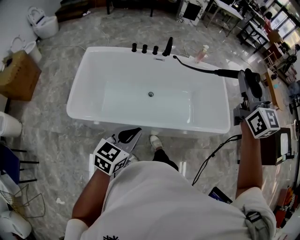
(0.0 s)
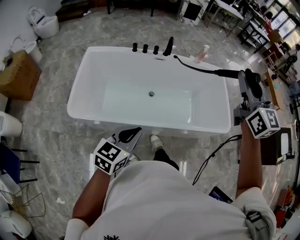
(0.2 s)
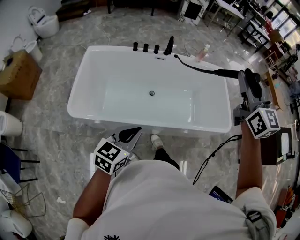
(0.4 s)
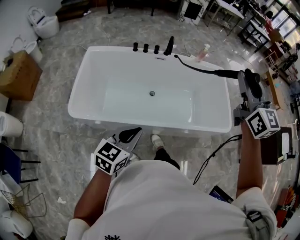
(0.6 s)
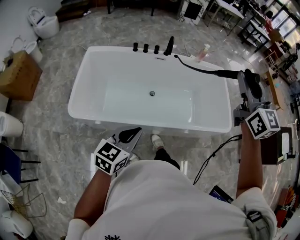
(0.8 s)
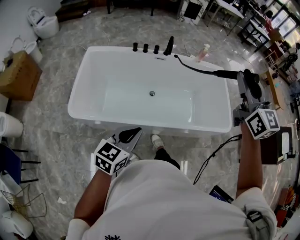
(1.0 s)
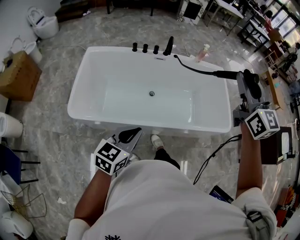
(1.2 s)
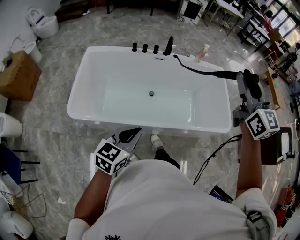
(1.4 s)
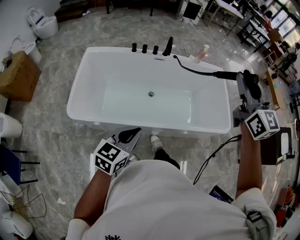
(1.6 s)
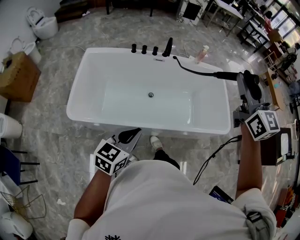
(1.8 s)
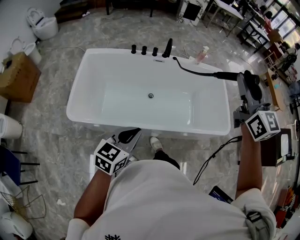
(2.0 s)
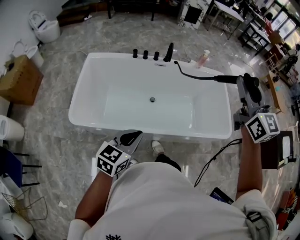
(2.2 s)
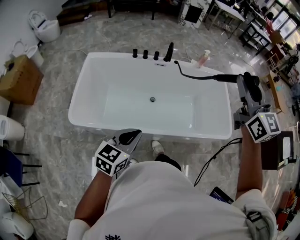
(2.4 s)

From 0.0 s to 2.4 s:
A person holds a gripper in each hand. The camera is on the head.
From 0.0 s to 1.2 s: The two grippers keep their place.
From 1.2 s to 2.4 s: There are only small adjustments of the grippers.

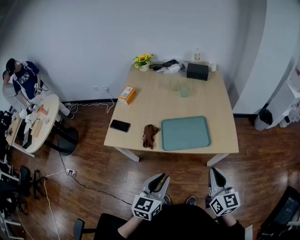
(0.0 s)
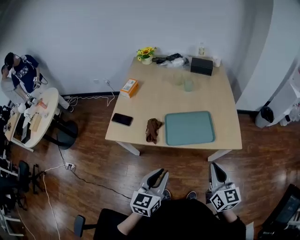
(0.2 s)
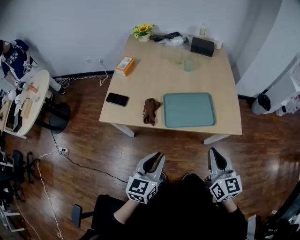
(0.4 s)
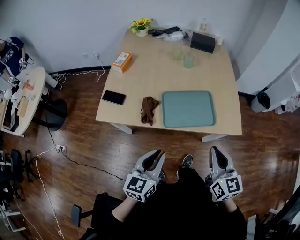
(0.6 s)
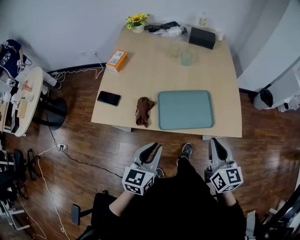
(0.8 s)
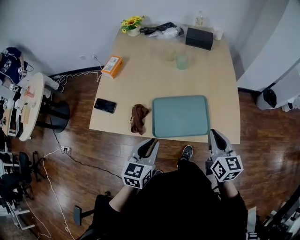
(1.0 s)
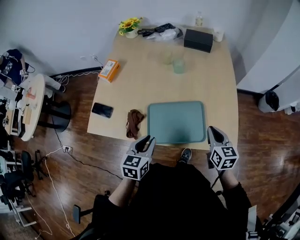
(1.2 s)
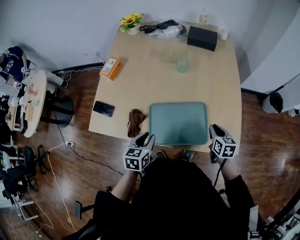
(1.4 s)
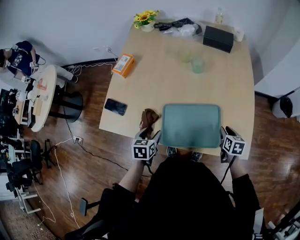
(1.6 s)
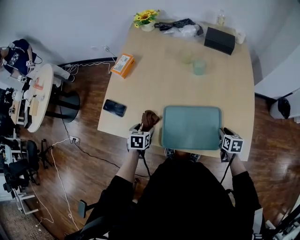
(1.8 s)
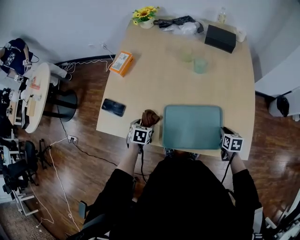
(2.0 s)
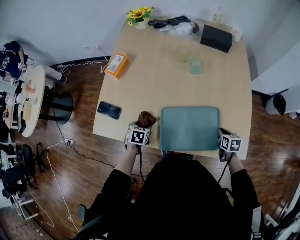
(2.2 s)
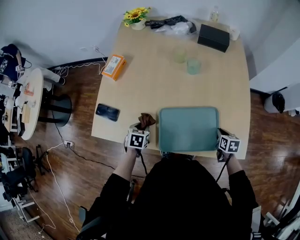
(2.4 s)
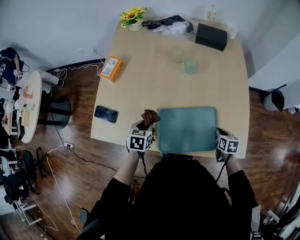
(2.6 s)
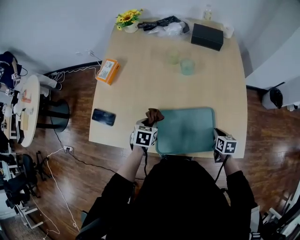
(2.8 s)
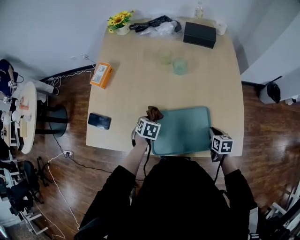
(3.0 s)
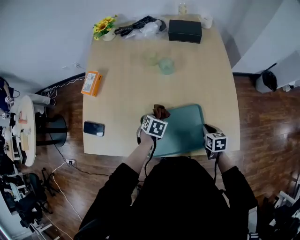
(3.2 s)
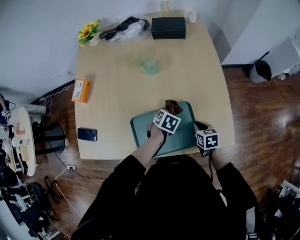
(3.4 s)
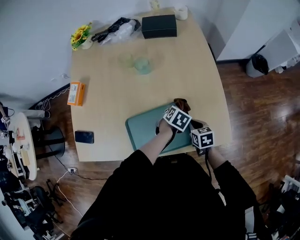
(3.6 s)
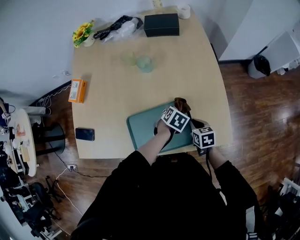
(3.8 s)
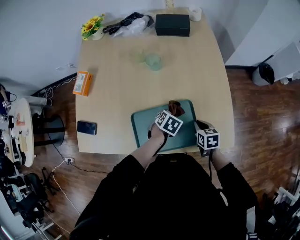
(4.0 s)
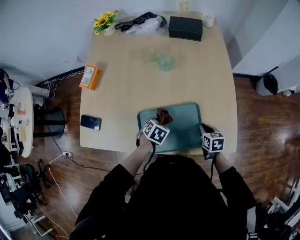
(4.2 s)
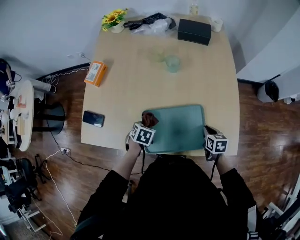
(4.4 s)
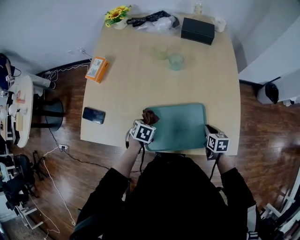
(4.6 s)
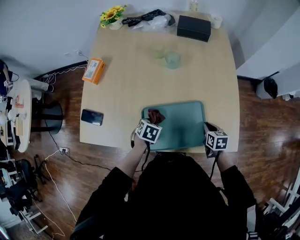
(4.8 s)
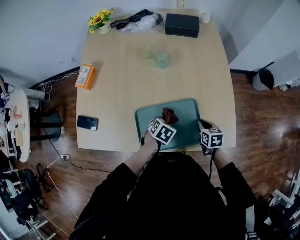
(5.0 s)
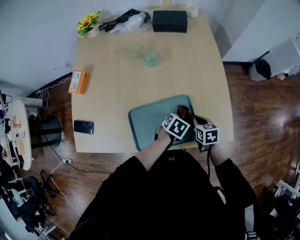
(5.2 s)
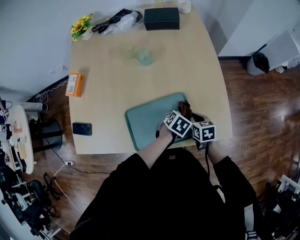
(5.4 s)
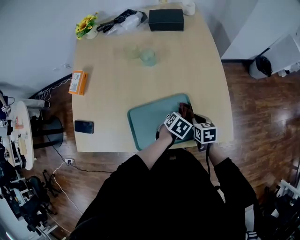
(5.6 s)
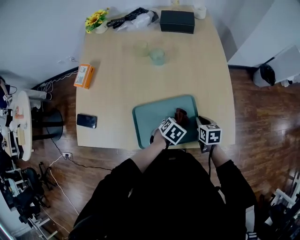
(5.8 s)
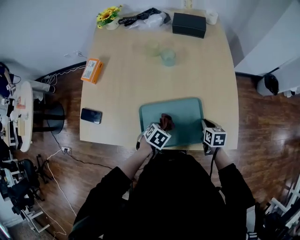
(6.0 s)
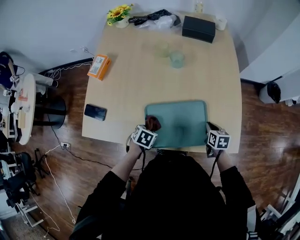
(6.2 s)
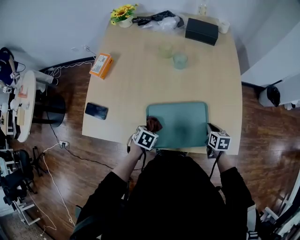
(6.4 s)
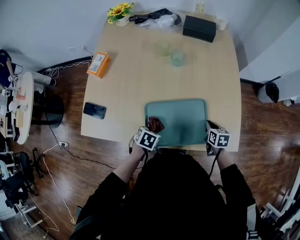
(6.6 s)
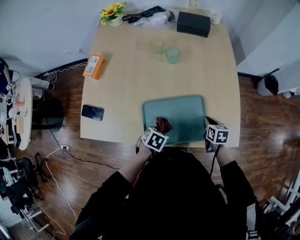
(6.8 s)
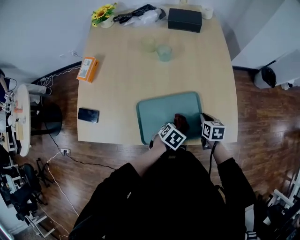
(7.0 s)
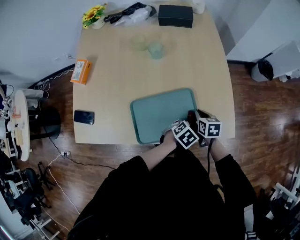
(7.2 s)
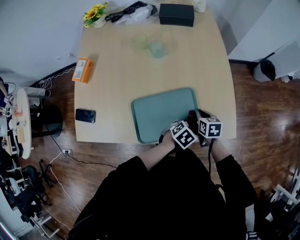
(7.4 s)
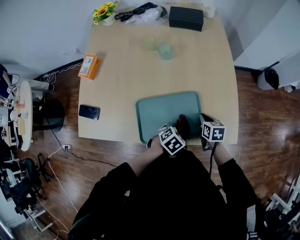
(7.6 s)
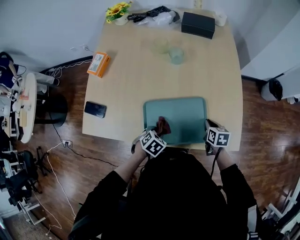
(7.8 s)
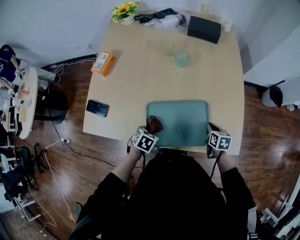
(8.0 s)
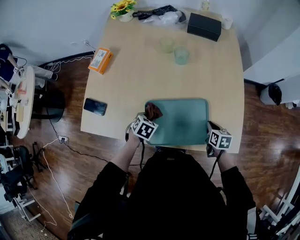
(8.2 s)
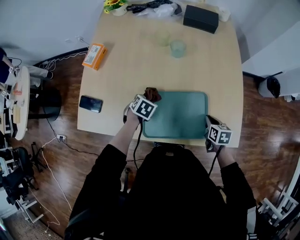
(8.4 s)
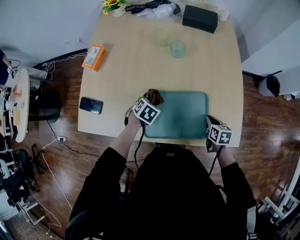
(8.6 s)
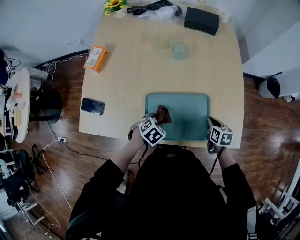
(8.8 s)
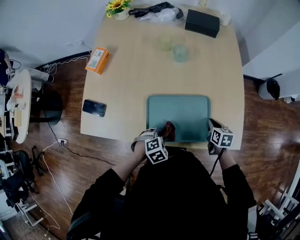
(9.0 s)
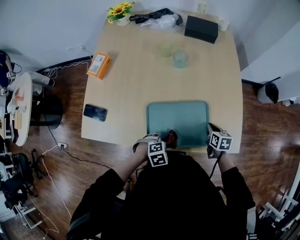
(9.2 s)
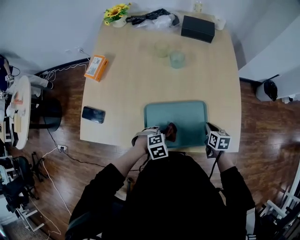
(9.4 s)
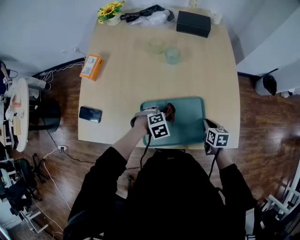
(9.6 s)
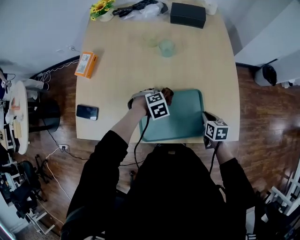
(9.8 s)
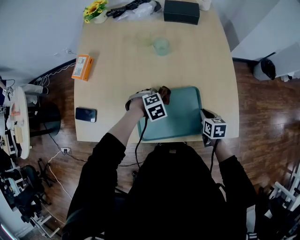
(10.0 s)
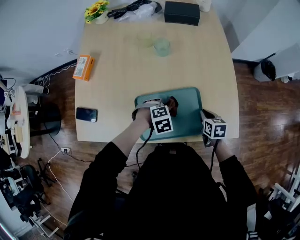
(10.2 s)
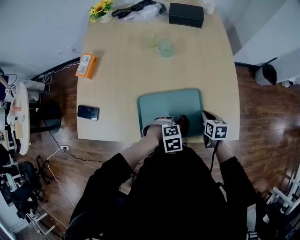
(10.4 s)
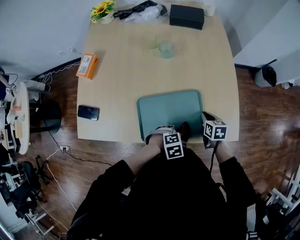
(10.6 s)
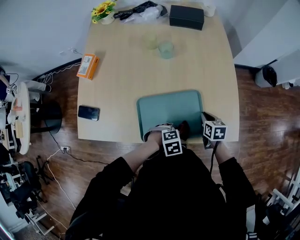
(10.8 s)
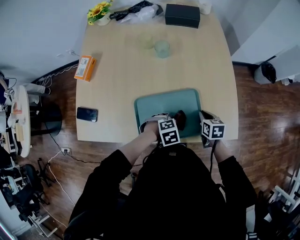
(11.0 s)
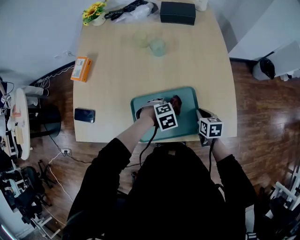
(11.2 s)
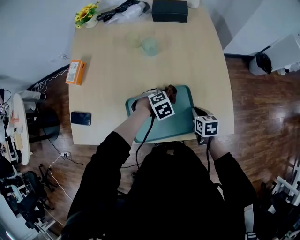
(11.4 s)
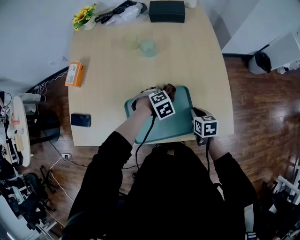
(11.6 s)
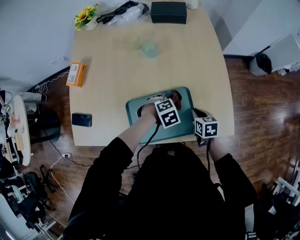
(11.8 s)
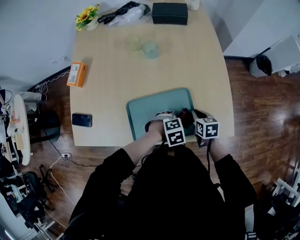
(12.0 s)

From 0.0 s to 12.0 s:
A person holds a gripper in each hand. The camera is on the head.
From 0.0 s to 1.6 s: The grippers both shift forward and downward by about 35 cm. The left gripper tips its fingers downward by roughly 30 degrees, and opens its fingers. The right gripper tilts its fingers roughly 40 degrees downward, and opens.
From 1.6 s to 3.0 s: The right gripper closes up. The left gripper shifts some 15 cm forward and downward, changes its angle by roughly 30 degrees, and closes its fingers.
From 3.0 s to 4.4 s: The left gripper moves approximately 30 cm to the right and comes back.
From 4.4 s to 6.0 s: The left gripper moves to the right, approximately 10 cm.
From 6.0 s to 7.6 s: The left gripper moves left and right over some 25 cm, changing direction 2 times.
From 7.6 s to 9.0 s: The left gripper is displaced to the left by roughly 10 cm.
From 9.0 s to 10.4 s: The left gripper rotates roughly 20 degrees.

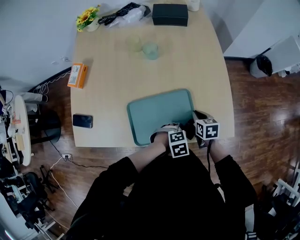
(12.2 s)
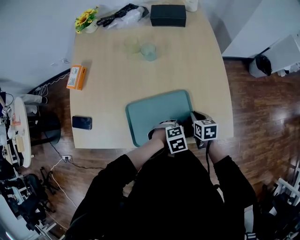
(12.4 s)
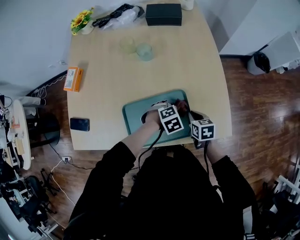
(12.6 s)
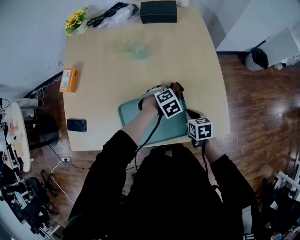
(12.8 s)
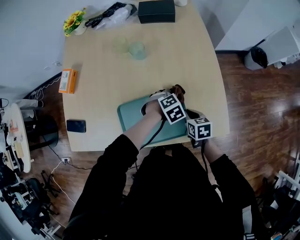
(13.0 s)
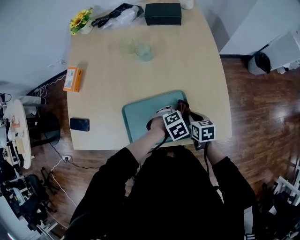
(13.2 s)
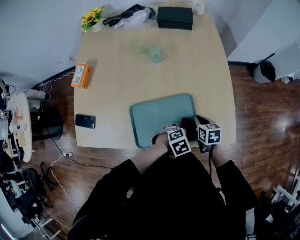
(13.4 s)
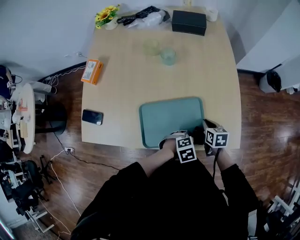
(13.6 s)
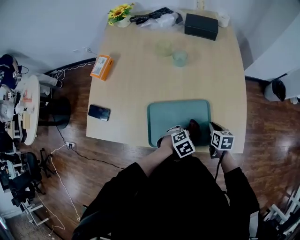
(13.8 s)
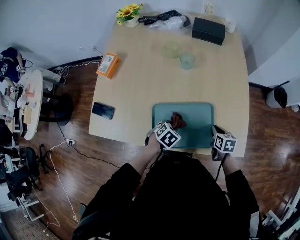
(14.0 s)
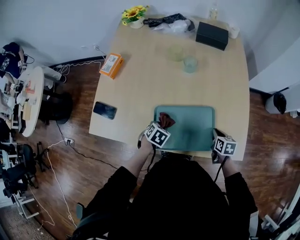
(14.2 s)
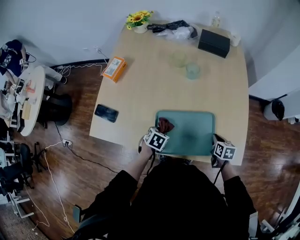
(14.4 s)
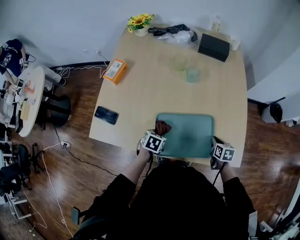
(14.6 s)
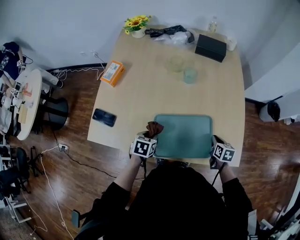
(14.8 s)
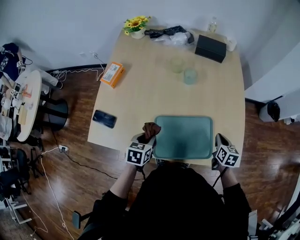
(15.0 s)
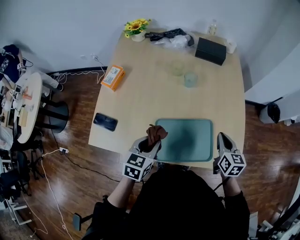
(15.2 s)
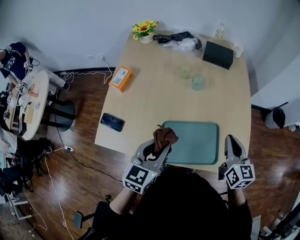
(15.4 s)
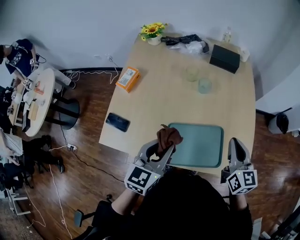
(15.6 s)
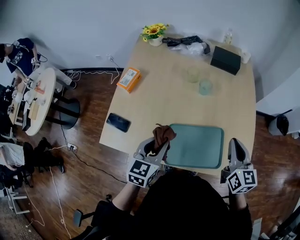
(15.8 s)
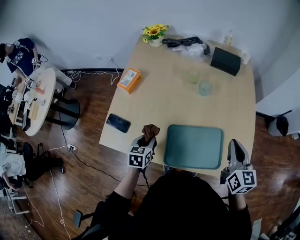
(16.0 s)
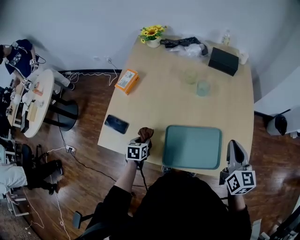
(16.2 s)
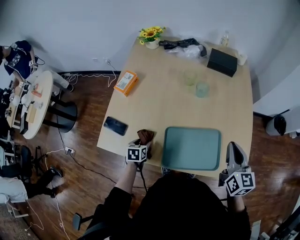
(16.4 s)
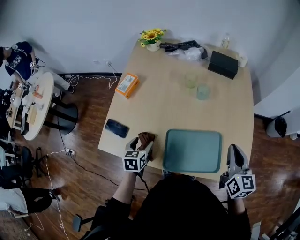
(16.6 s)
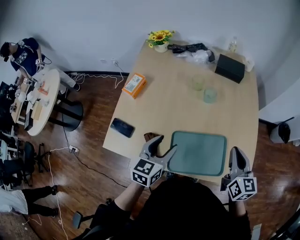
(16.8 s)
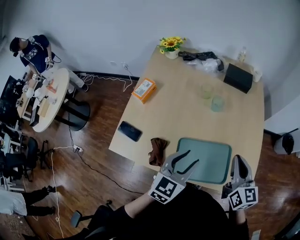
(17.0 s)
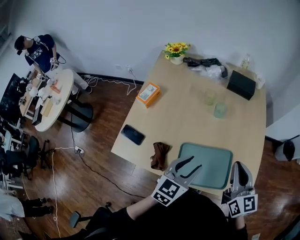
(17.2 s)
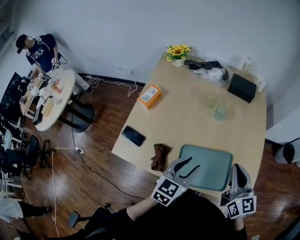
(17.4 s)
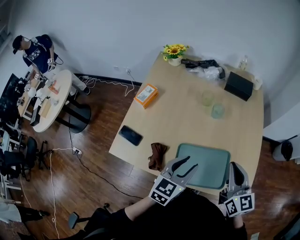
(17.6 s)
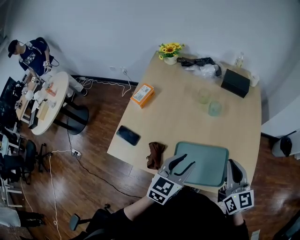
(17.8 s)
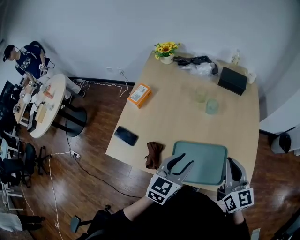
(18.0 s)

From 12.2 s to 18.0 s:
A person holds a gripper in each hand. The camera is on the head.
From 12.2 s to 13.6 s: The left gripper goes forward and returns, roughly 20 cm each way.
From 13.6 s to 15.0 s: The left gripper ends up roughly 30 cm from where it was, and rolls counterclockwise, seen from behind, by approximately 60 degrees. Meanwhile the right gripper travels upward by approximately 5 cm.
From 15.0 s to 16.6 s: The right gripper moves upward, some 20 cm, and changes its angle by approximately 30 degrees, while the left gripper goes up and down, approximately 25 cm each way, reversing 2 times, and opens up.
From 16.6 s to 18.0 s: The right gripper heads to the left, covering approximately 5 cm. Meanwhile the left gripper travels to the right and upward by about 25 cm, changes its angle by roughly 30 degrees, and closes.

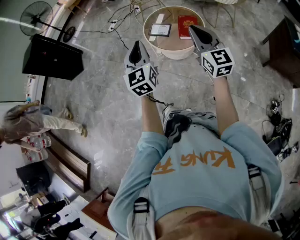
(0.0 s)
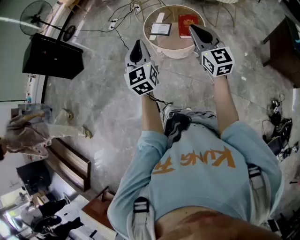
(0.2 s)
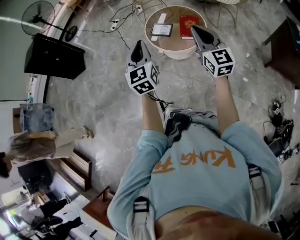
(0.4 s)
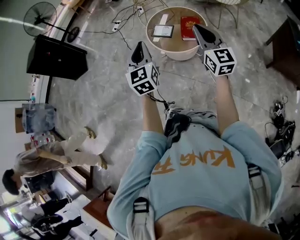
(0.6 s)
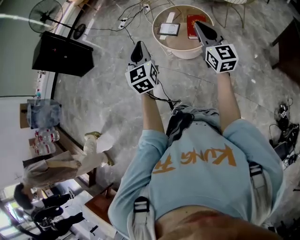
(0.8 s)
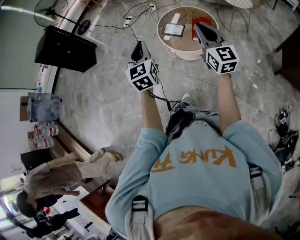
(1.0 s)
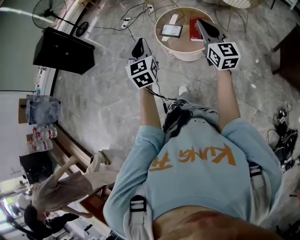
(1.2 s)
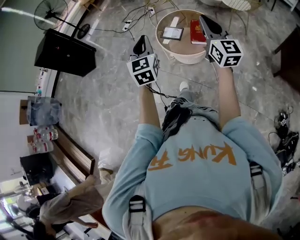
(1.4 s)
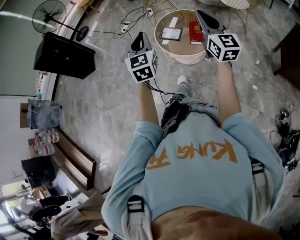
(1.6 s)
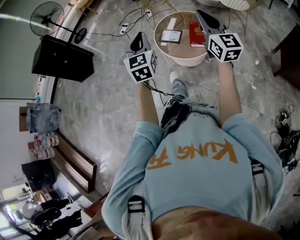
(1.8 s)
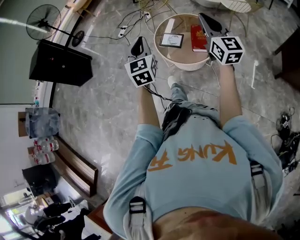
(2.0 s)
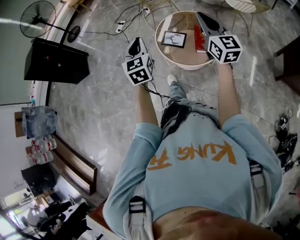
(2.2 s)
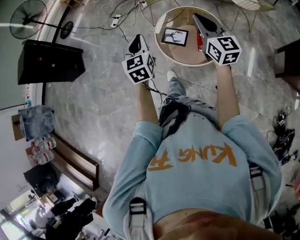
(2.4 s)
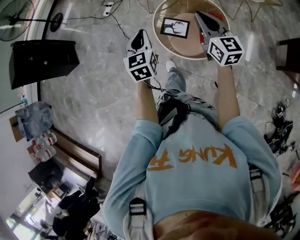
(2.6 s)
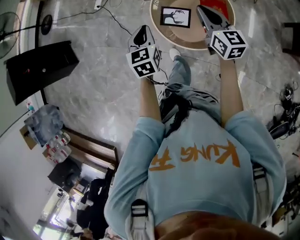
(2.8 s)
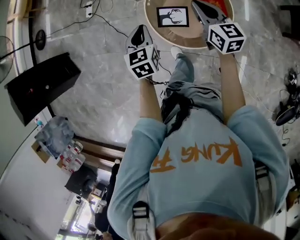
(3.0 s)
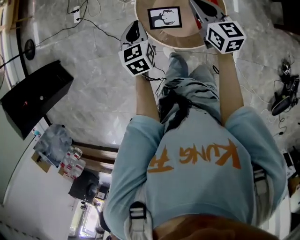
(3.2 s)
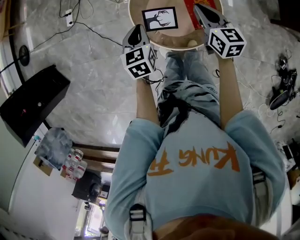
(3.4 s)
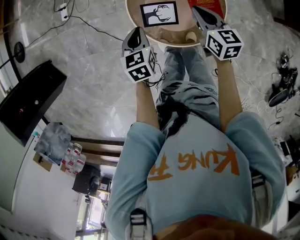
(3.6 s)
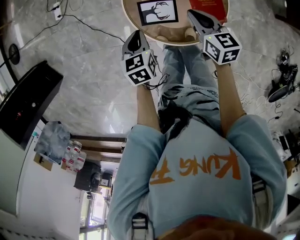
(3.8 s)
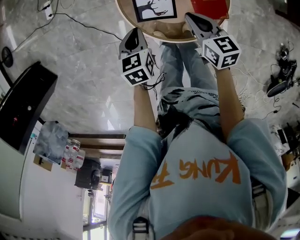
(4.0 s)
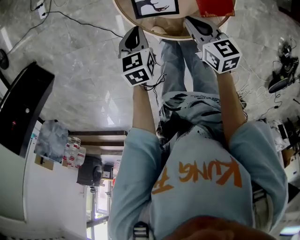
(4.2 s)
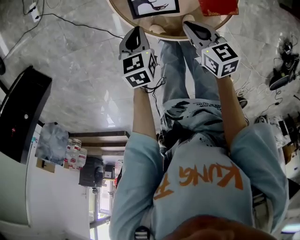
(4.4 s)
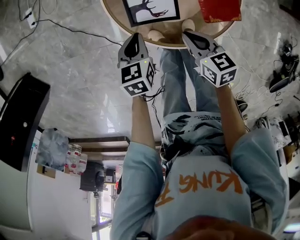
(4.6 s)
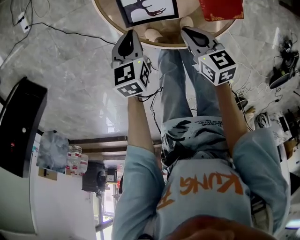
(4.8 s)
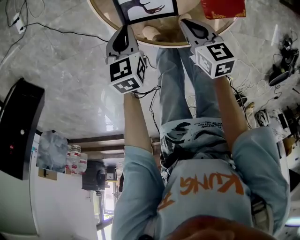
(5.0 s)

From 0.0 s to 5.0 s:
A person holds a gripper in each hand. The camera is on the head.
From 0.0 s to 1.6 s: Both grippers travel together forward, approximately 5 cm.
From 1.6 s to 3.4 s: Both grippers are carried forward, about 50 cm. Both grippers move downward, about 30 cm. The left gripper angles its fingers downward, by about 30 degrees. The right gripper tips its fingers downward by roughly 40 degrees.
From 3.4 s to 5.0 s: The grippers both shift downward by approximately 35 cm. The right gripper turns by roughly 30 degrees.
